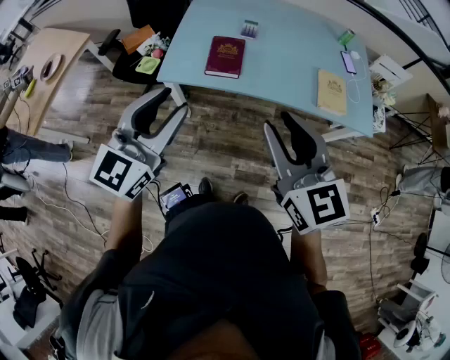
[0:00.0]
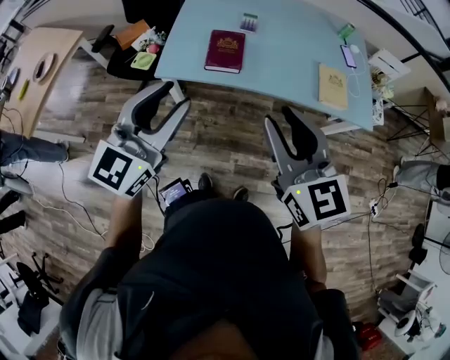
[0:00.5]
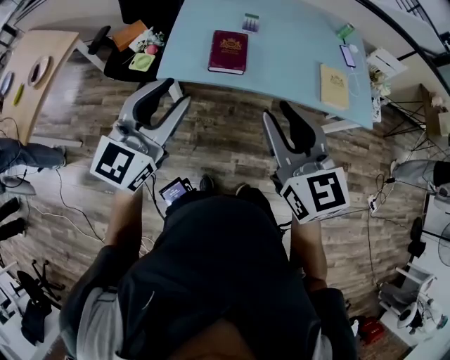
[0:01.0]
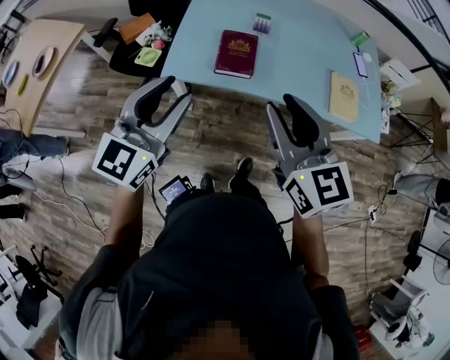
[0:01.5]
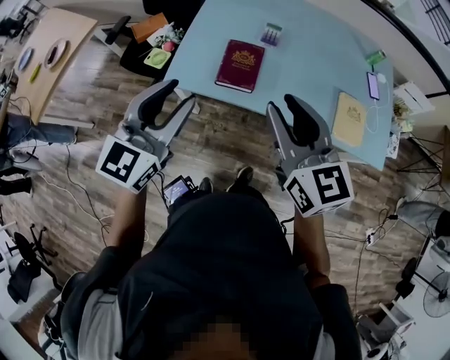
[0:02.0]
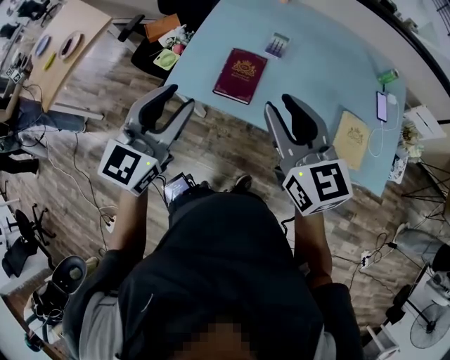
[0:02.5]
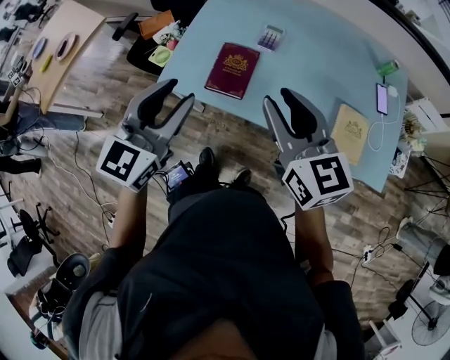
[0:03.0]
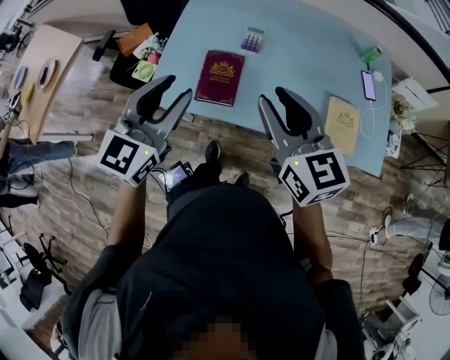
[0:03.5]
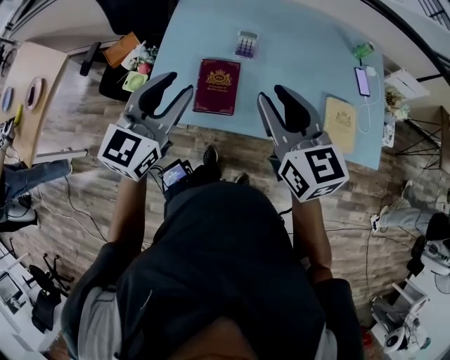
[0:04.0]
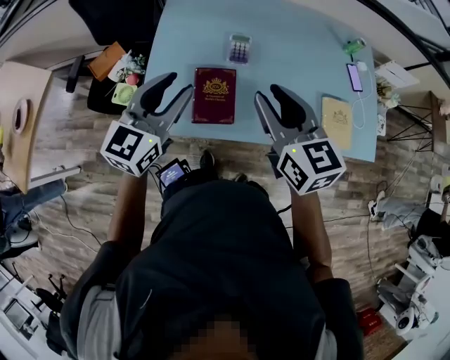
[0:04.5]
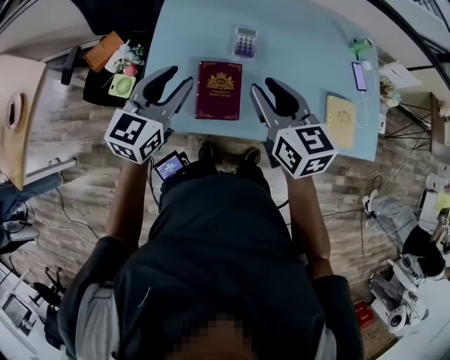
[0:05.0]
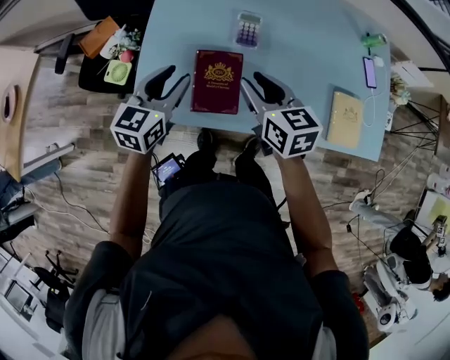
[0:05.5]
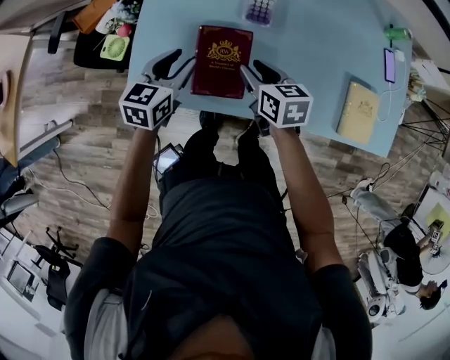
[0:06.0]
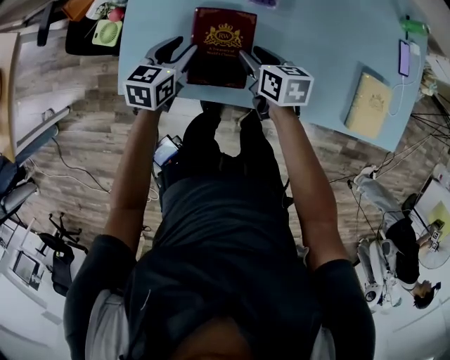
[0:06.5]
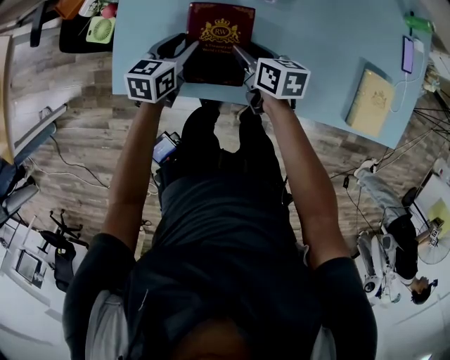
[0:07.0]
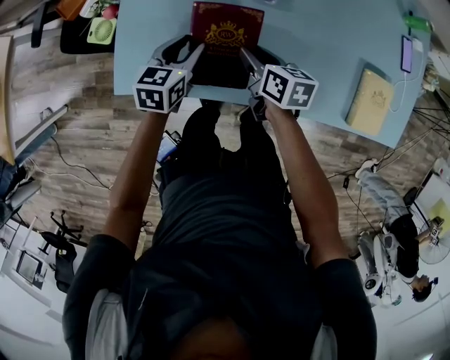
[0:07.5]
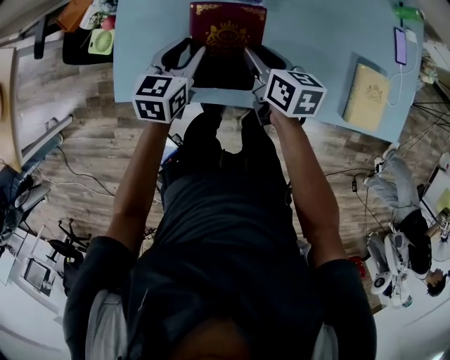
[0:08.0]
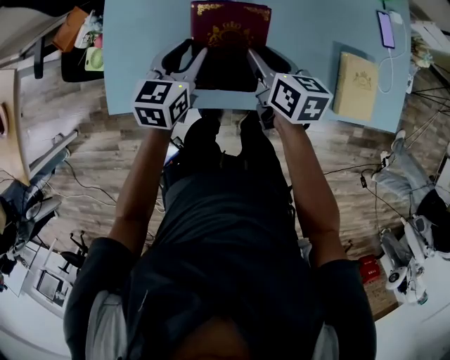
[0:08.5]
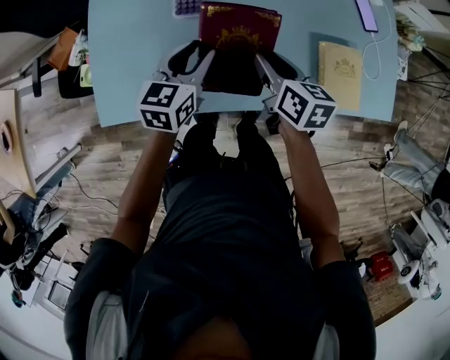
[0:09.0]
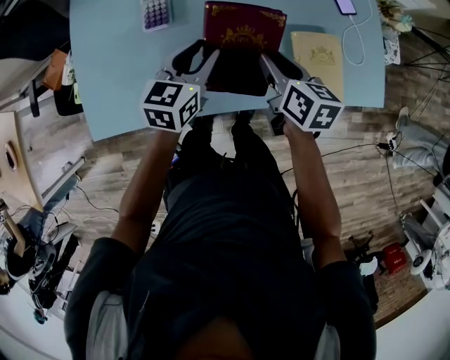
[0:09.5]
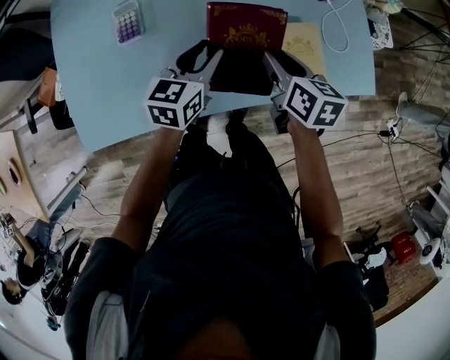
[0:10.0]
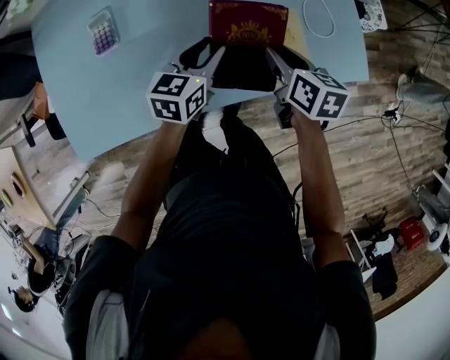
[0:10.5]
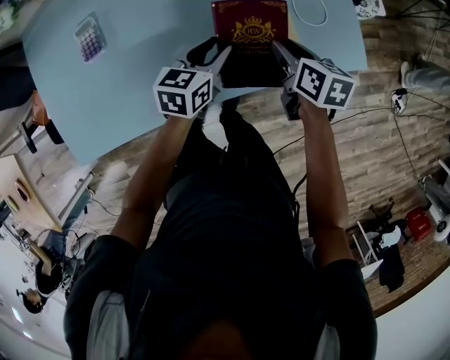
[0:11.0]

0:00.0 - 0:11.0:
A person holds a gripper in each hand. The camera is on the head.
0:00.0 - 0:02.0: Both grippers travel together forward, approximately 15 cm.
0:02.0 - 0:03.5: The two grippers go roughly 10 cm forward and to the right.
0:03.5 - 0:05.5: The two grippers go some 25 cm downward, forward and to the left. The left gripper changes its angle by some 20 degrees; the right gripper rotates roughly 20 degrees.
0:05.5 - 0:07.5: Both grippers move downward, some 20 cm. The right gripper rotates about 30 degrees.
0:07.5 - 0:09.0: The grippers both shift to the right and upward by roughly 20 cm.
0:09.0 - 0:11.0: Both grippers travel together to the right, roughly 30 cm. The left gripper rotates some 20 degrees.

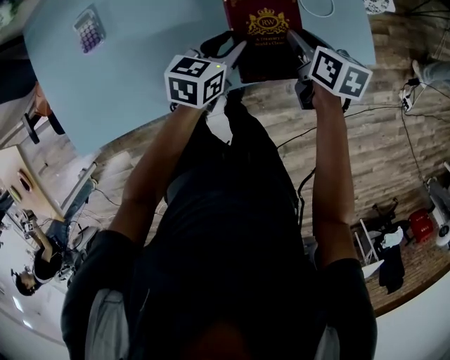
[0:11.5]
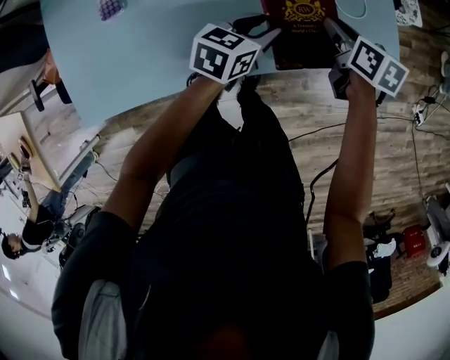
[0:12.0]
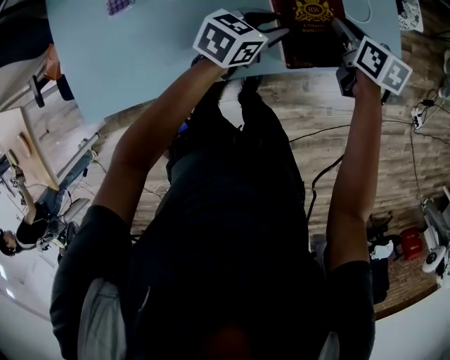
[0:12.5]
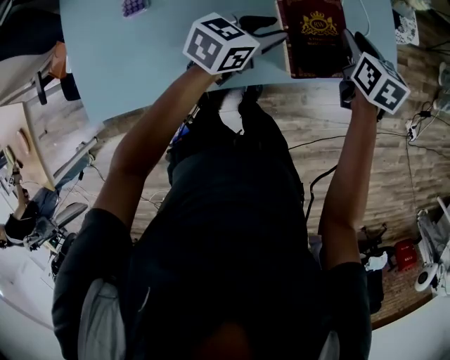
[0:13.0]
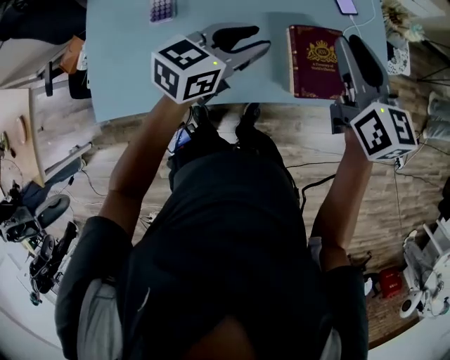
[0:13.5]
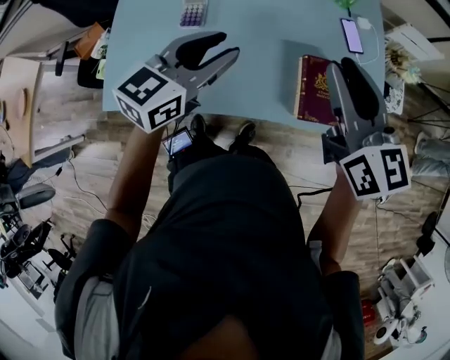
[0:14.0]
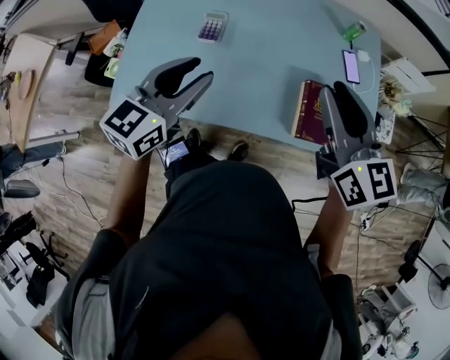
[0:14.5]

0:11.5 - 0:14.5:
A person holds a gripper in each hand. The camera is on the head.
0:11.5 - 0:13.0: The grippers both shift upward by about 5 cm.
0:13.0 - 0:14.5: The right gripper moves upward, about 30 cm, and tips its fingers upward by about 30 degrees. Meanwhile the left gripper shifts by approximately 35 cm, and turns by roughly 40 degrees.

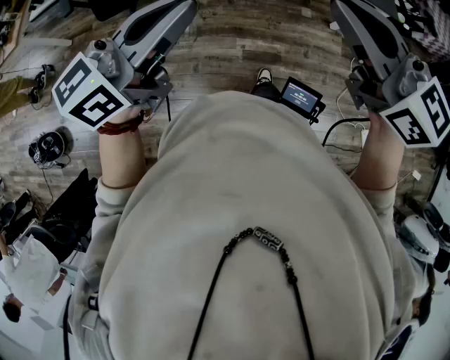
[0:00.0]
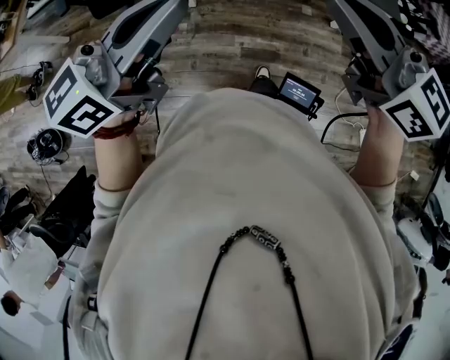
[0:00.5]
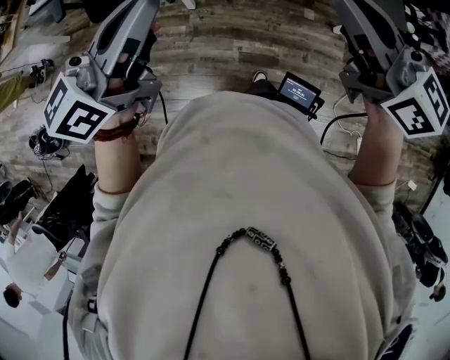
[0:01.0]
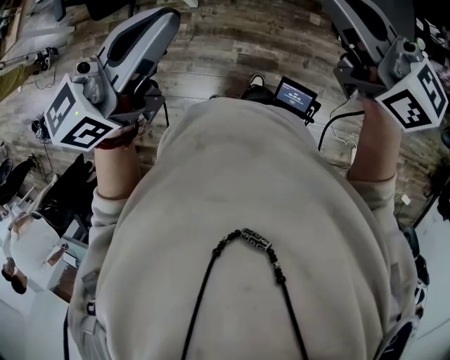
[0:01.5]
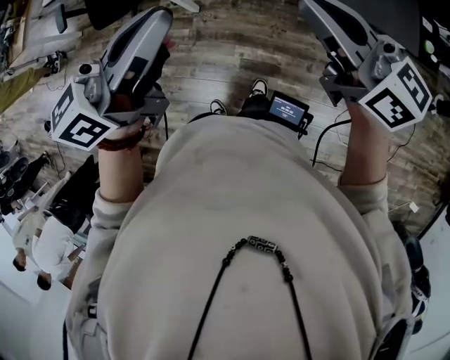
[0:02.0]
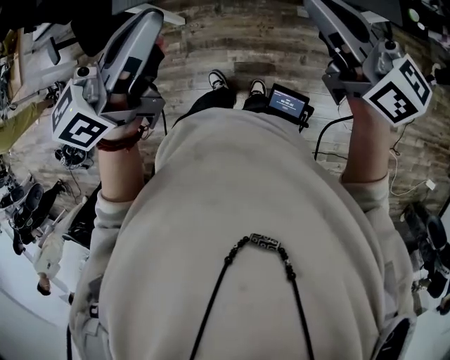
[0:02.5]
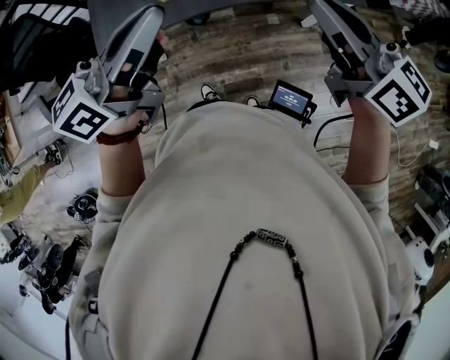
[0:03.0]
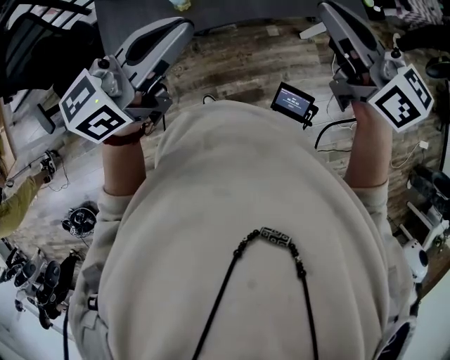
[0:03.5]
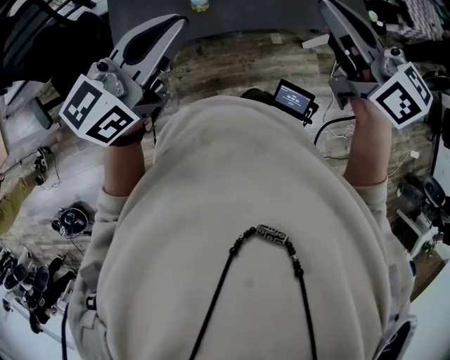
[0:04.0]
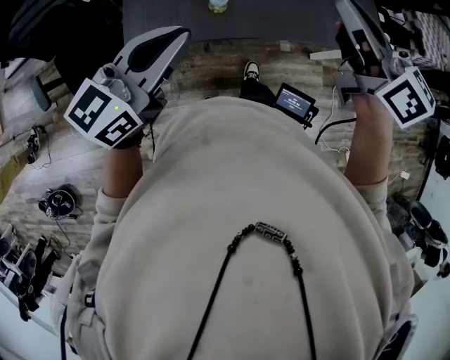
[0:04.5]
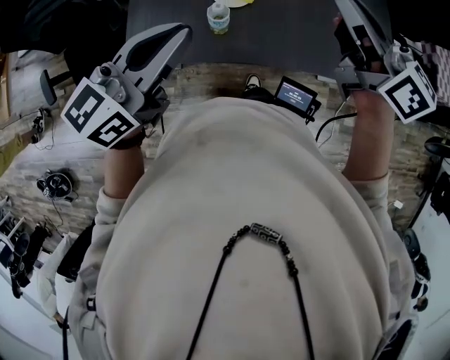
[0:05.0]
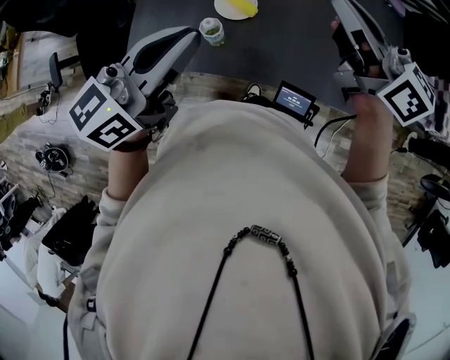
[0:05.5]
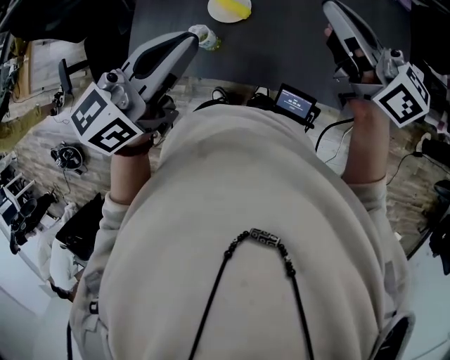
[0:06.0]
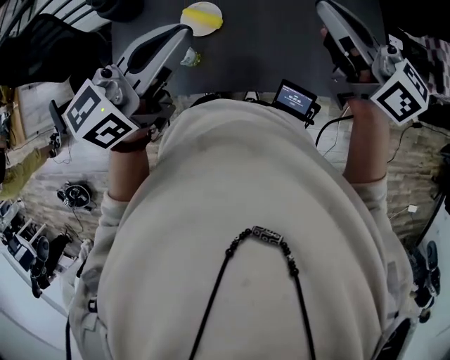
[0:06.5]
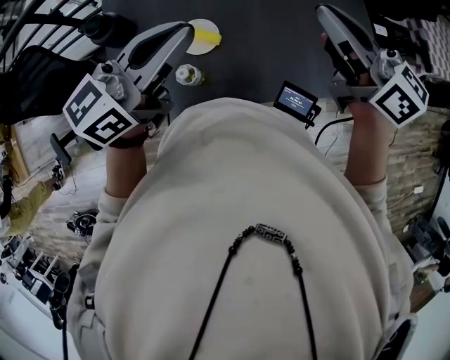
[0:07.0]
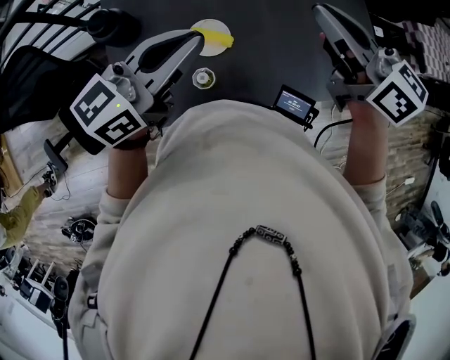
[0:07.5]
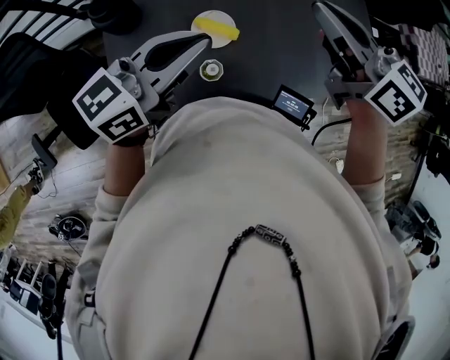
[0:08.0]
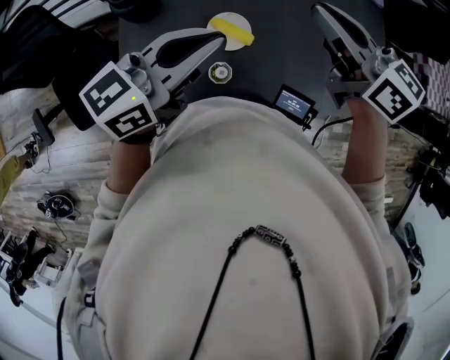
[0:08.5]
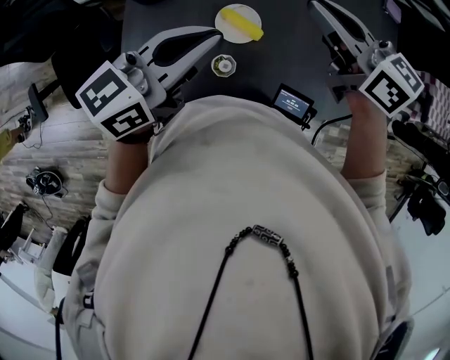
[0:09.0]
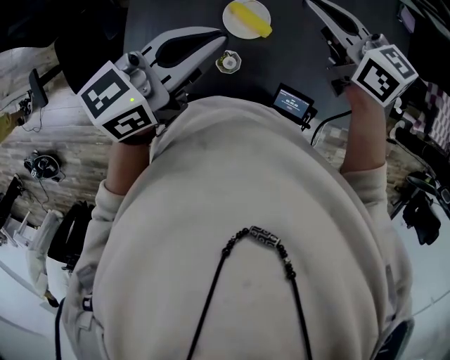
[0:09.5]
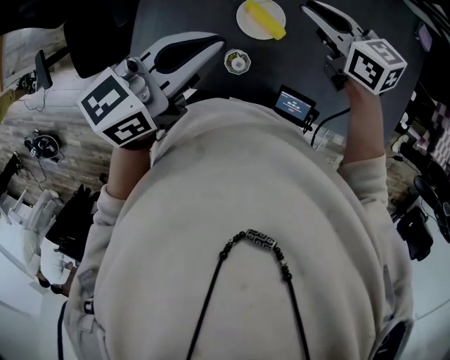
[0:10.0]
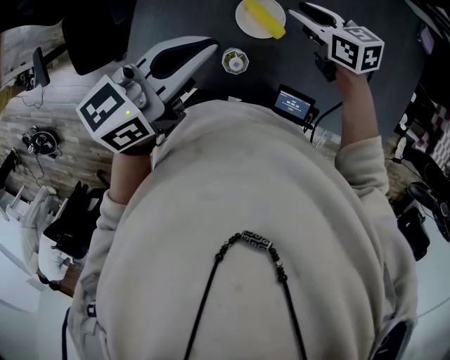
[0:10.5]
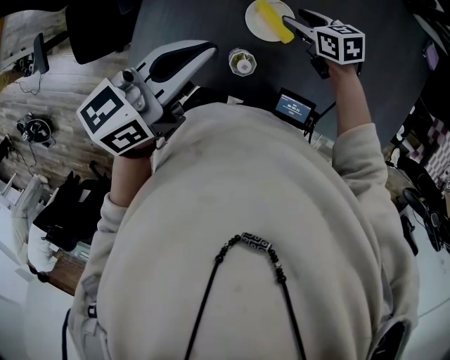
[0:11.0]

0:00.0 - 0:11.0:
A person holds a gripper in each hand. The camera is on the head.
0:00.0 - 0:02.0: The right gripper shifts about 10 cm downward.
0:02.0 - 0:03.5: The left gripper moves roughly 5 cm, and rotates approximately 20 degrees, while the right gripper is displaced backward by some 5 cm, and swivels roughly 20 degrees.
0:03.5 - 0:05.5: The right gripper is displaced to the left by roughly 5 cm, while the left gripper is displaced backward by some 5 cm, and changes its angle by some 20 degrees.
0:05.5 - 0:07.5: The left gripper moves forward and downward, roughly 15 cm, and changes its angle by roughly 20 degrees. Meanwhile the right gripper shifts by approximately 5 cm.
0:07.5 - 0:09.0: The right gripper goes some 10 cm to the left, downward and forward.
0:09.0 - 0:11.0: The right gripper is displaced downward by about 30 cm, rotates approximately 30 degrees, and opens its fingers, while the left gripper shifts by about 5 cm.

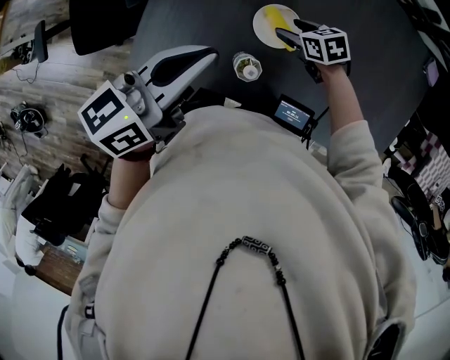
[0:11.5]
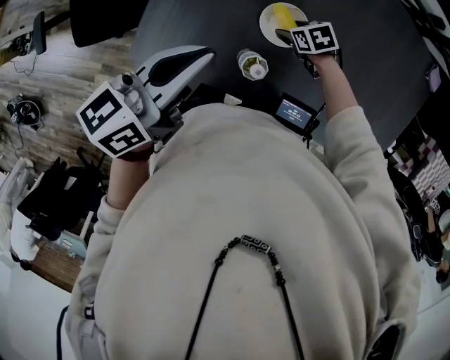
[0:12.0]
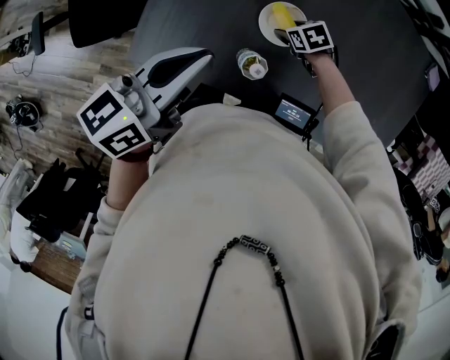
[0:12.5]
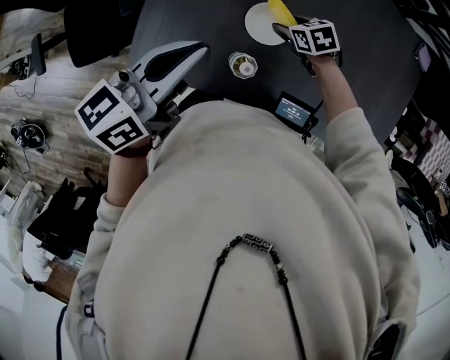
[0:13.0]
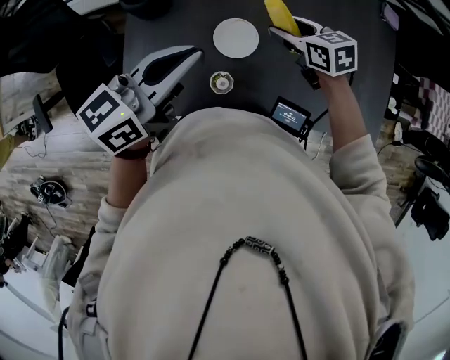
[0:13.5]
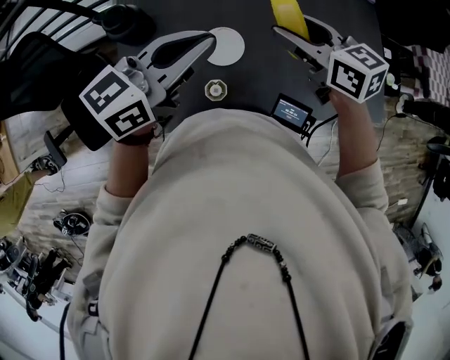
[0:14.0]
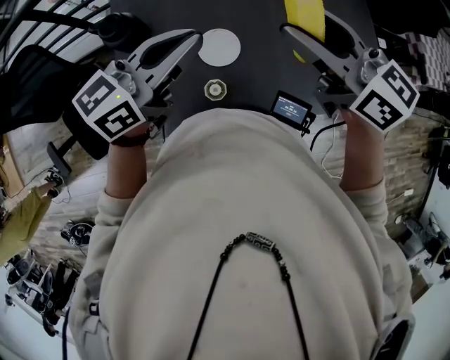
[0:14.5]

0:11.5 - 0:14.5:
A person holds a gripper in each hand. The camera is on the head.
0:13.0 - 0:14.5: The left gripper changes place by about 10 cm, and rotates about 30 degrees. The right gripper travels upward by roughly 40 cm, and tilts its fingers some 50 degrees upward.
